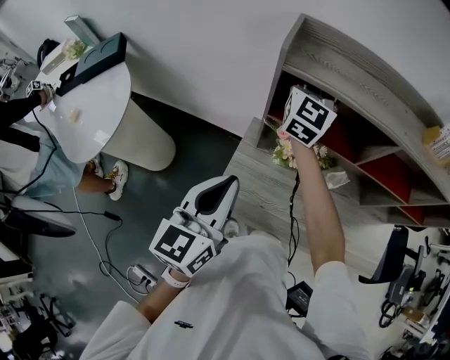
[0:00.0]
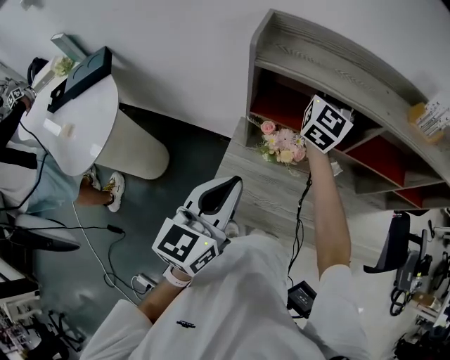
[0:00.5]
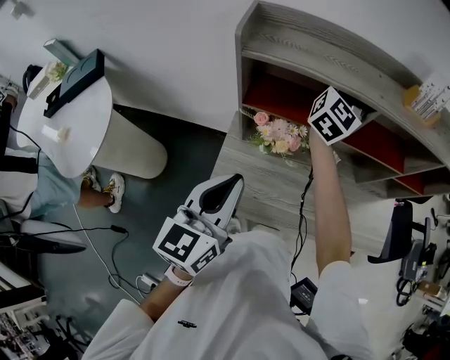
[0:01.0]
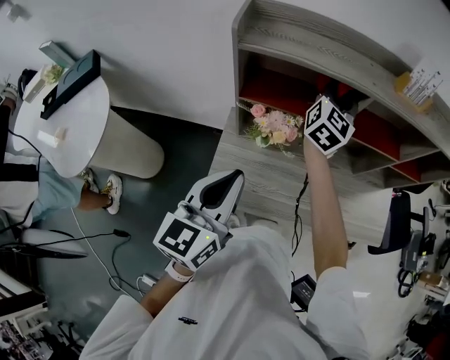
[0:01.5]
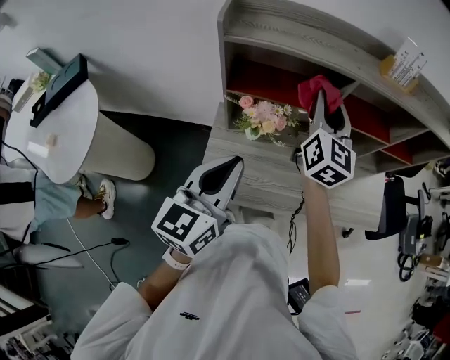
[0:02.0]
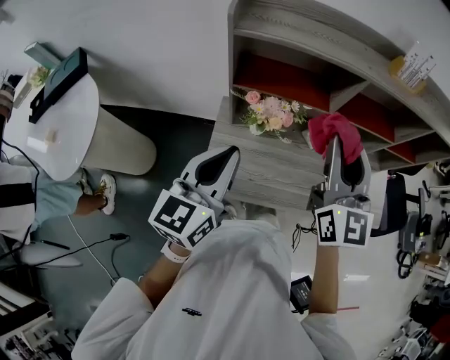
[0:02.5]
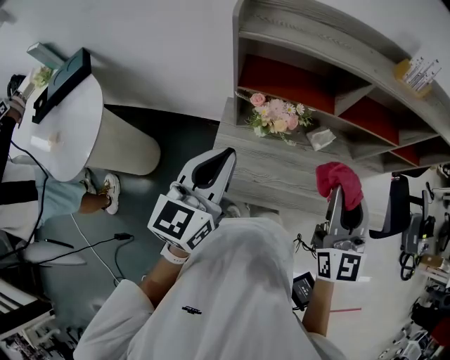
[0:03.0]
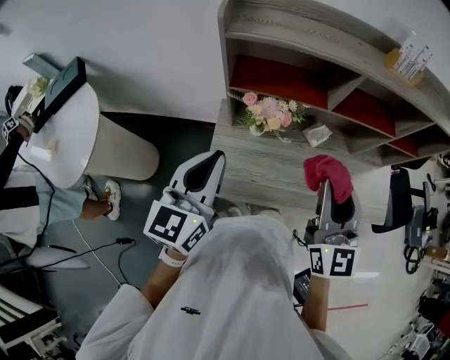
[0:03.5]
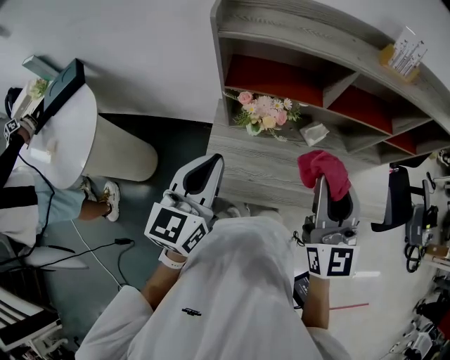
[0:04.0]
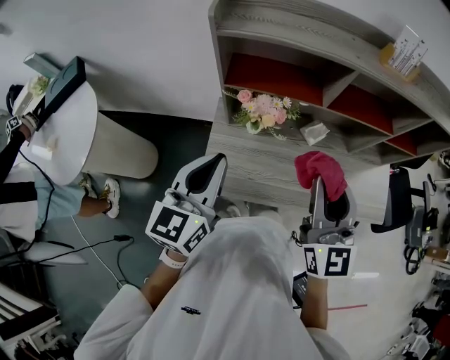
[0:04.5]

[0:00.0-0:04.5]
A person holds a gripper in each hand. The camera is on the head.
0:00.0 to 0:02.0: The right gripper is displaced to the right and backward by about 25 cm; the left gripper moves to the right, about 10 cm.
0:02.0 to 0:04.5: The right gripper travels backward by some 20 cm.

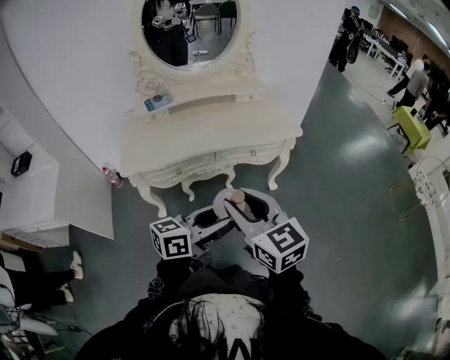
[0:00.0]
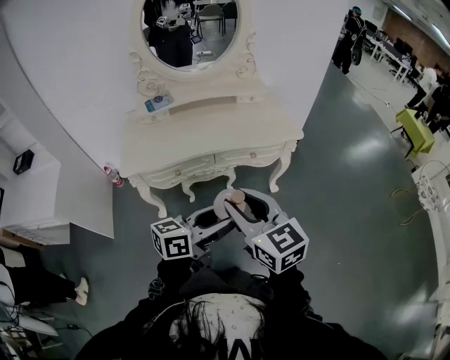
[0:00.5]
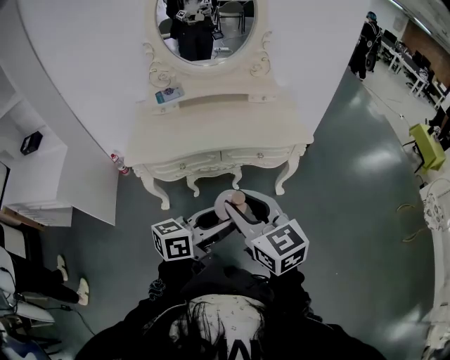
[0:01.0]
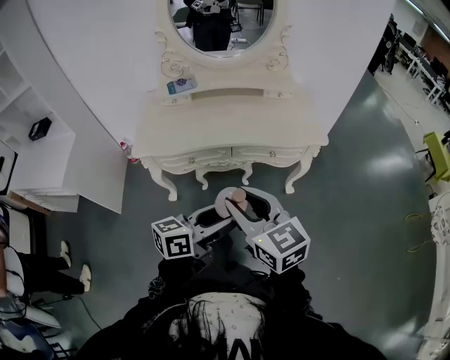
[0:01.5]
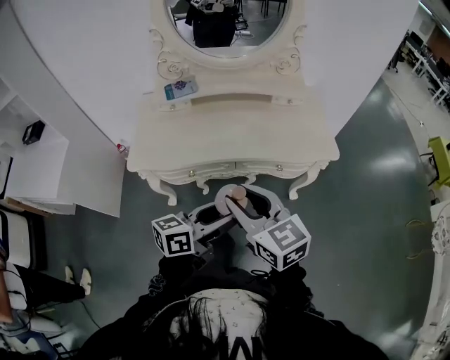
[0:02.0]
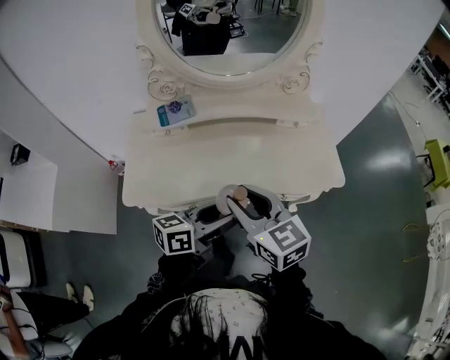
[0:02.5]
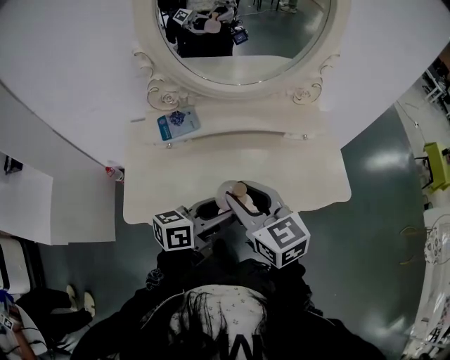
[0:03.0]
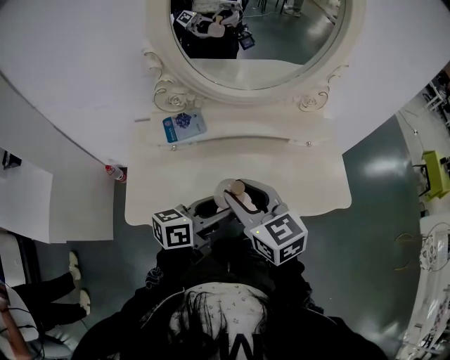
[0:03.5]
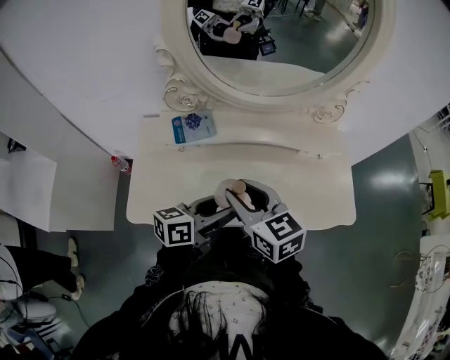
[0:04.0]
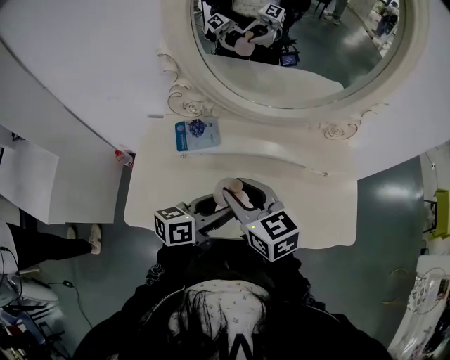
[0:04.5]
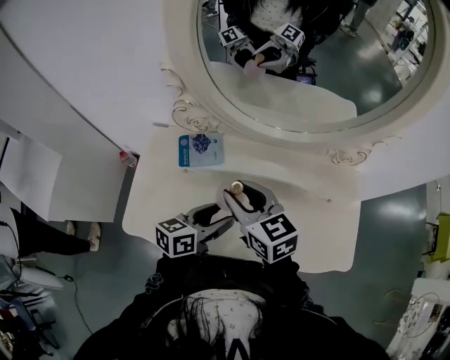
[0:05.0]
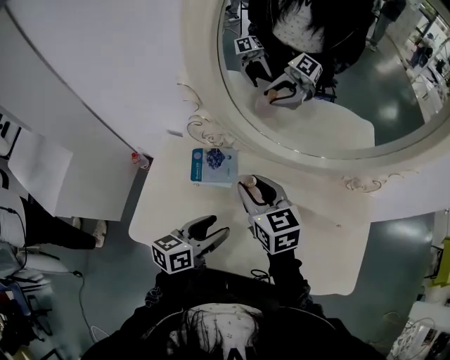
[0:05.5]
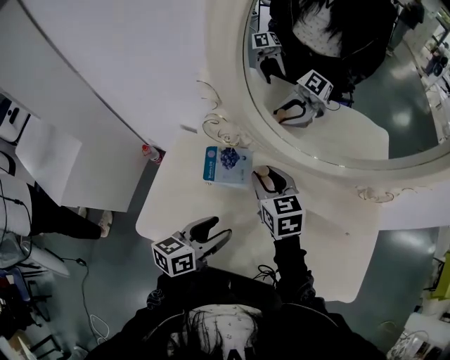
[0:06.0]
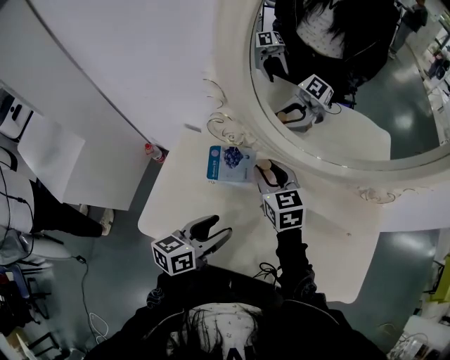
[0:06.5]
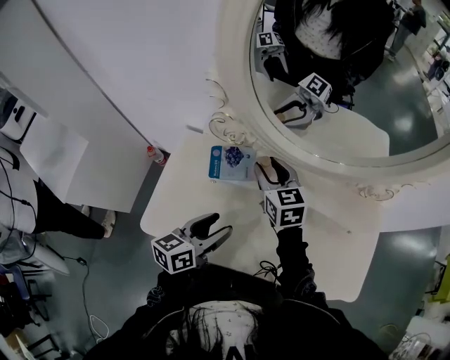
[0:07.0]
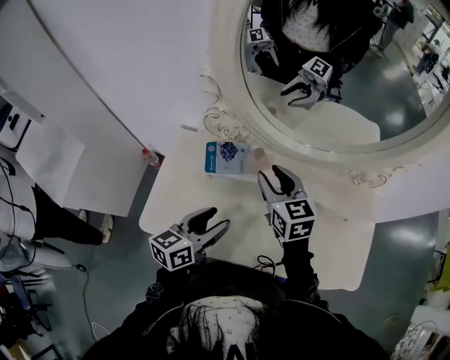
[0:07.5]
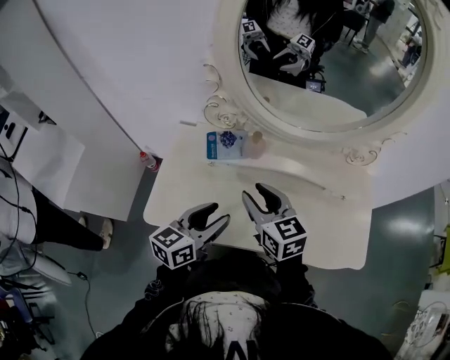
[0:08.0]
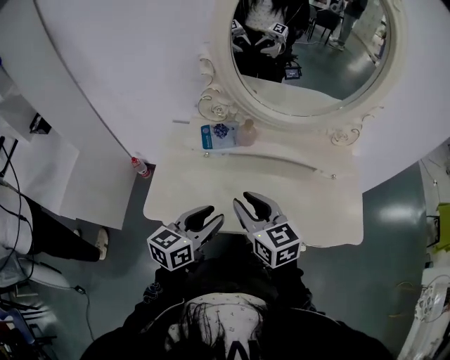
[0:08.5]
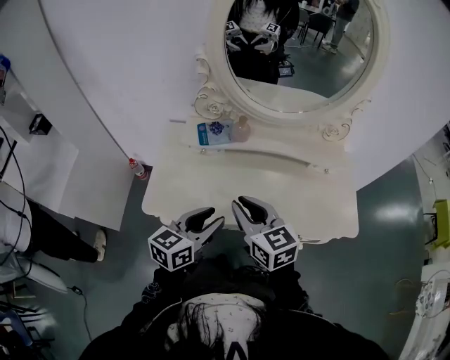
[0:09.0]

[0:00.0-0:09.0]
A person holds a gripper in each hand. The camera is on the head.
0:00.0 to 0:02.0: Both grippers travel together forward, roughly 15 cm.
0:02.0 to 0:04.5: The right gripper heads forward and to the left, covering roughly 35 cm, while the left gripper travels forward by approximately 35 cm.
0:04.5 to 0:07.0: The right gripper shifts roughly 20 cm forward. Meanwhile the left gripper is displaced to the left by about 10 cm, and rotates approximately 20 degrees.
0:07.0 to 0:09.0: The left gripper moves backward, roughly 15 cm, and closes, while the right gripper goes approximately 30 cm backward, and closes its fingers.

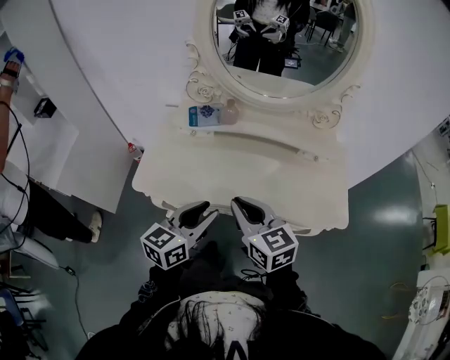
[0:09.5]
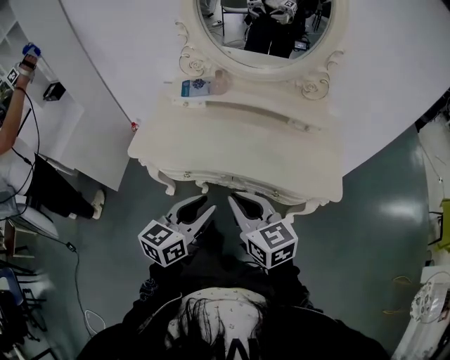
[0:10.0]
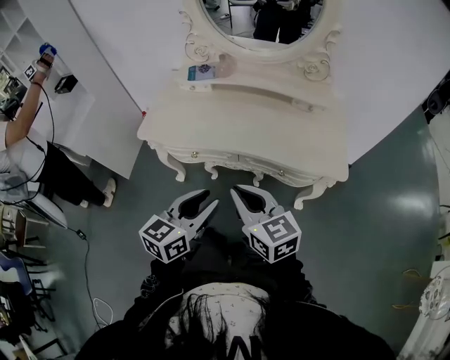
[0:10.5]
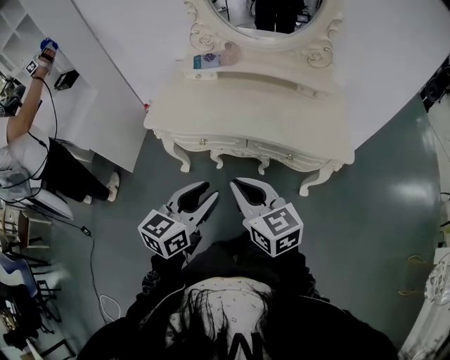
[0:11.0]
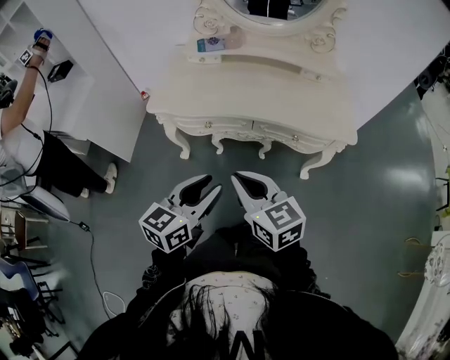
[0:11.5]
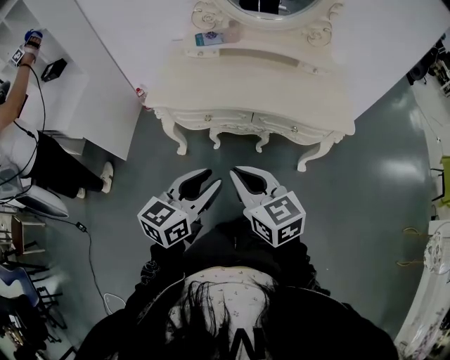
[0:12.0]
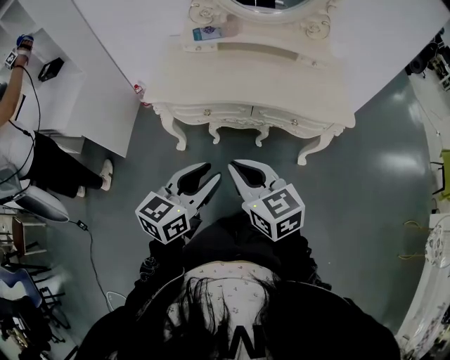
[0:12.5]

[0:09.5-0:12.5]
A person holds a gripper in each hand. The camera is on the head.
0:09.5 to 0:11.0: Both grippers move backward, about 20 cm.
0:11.0 to 0:12.5: The left gripper heads to the left, covering approximately 5 cm. The right gripper travels to the left and backward by about 10 cm.

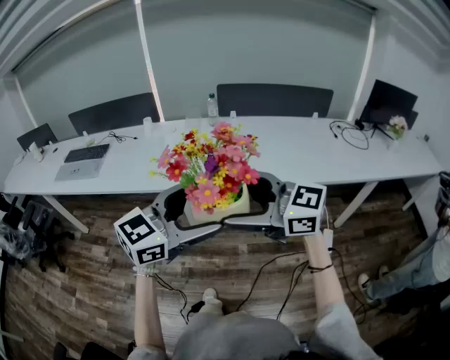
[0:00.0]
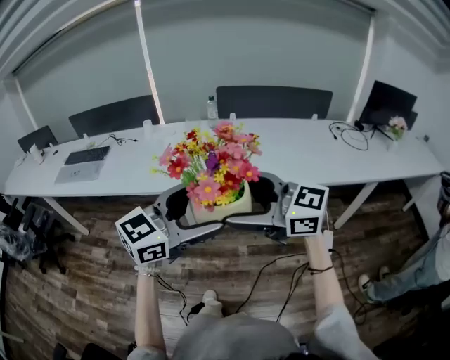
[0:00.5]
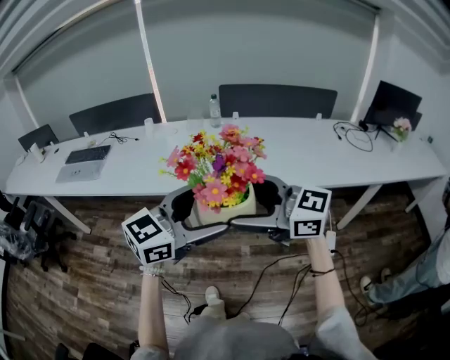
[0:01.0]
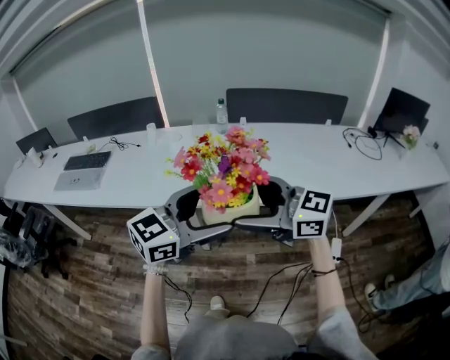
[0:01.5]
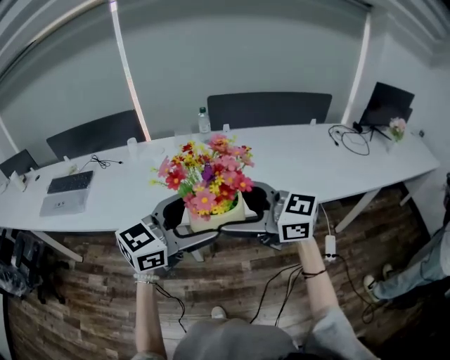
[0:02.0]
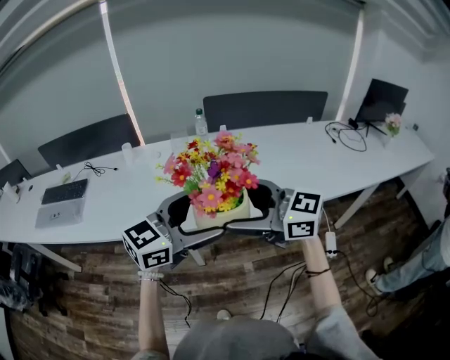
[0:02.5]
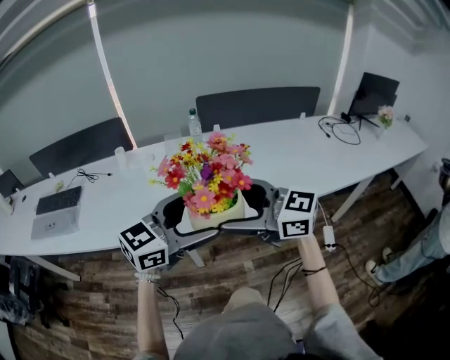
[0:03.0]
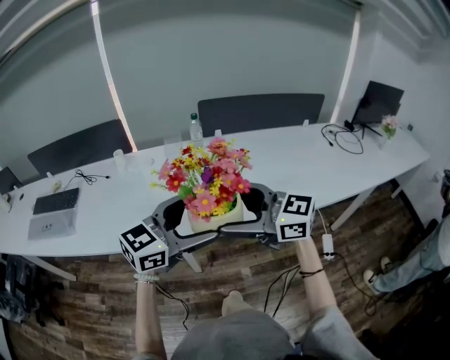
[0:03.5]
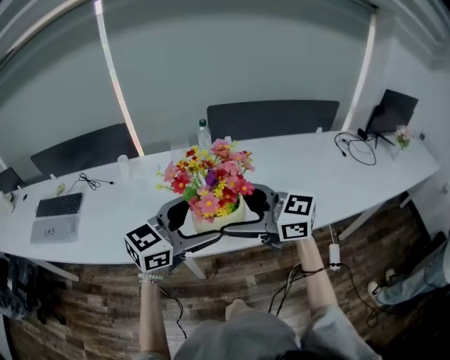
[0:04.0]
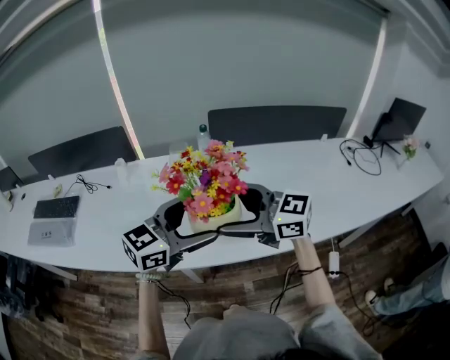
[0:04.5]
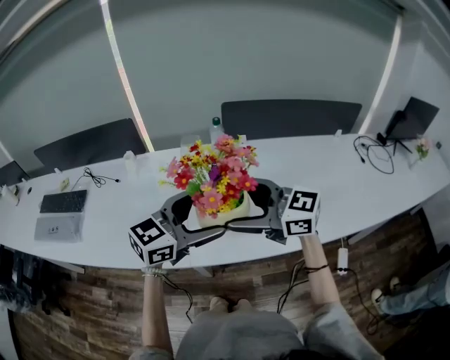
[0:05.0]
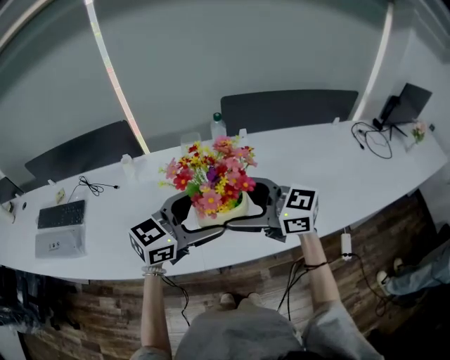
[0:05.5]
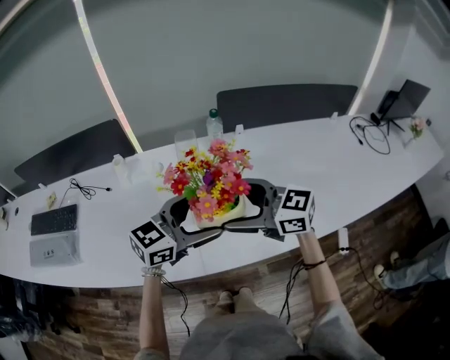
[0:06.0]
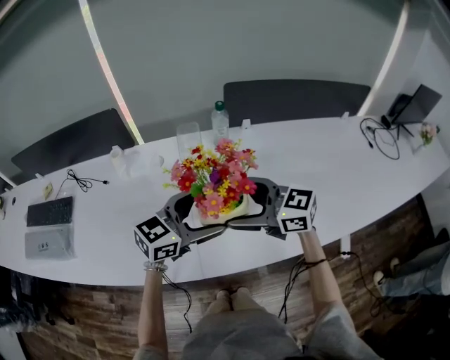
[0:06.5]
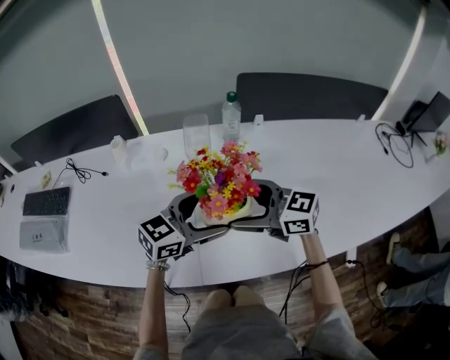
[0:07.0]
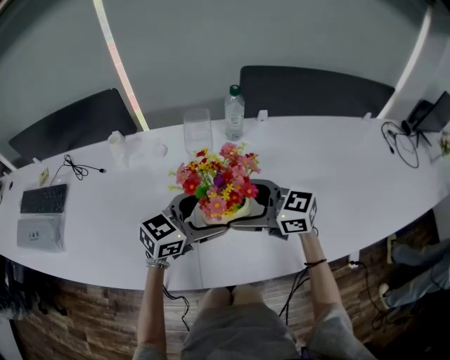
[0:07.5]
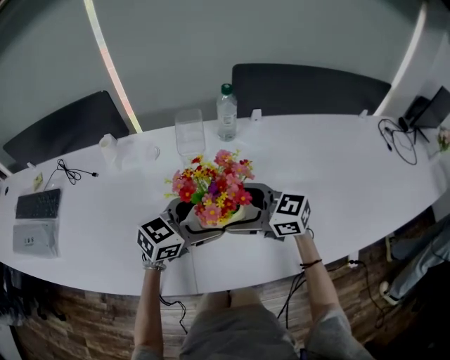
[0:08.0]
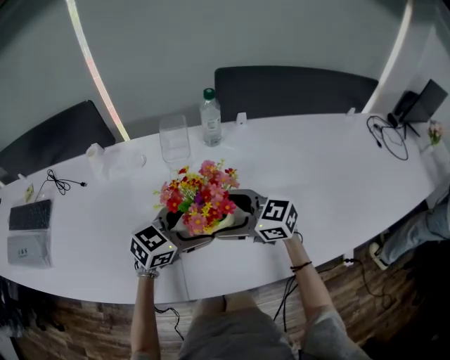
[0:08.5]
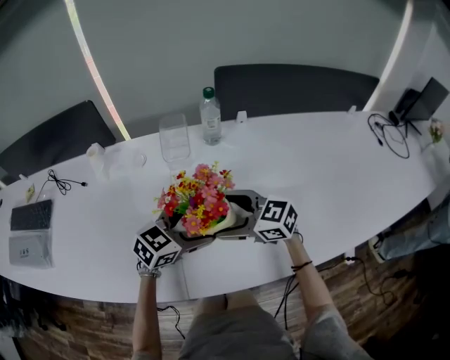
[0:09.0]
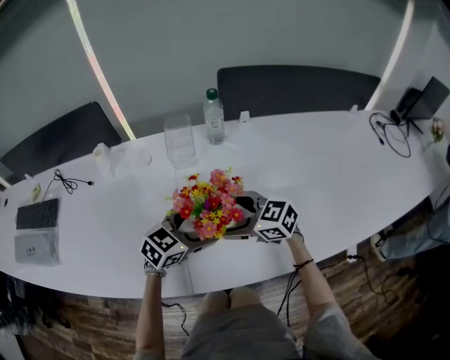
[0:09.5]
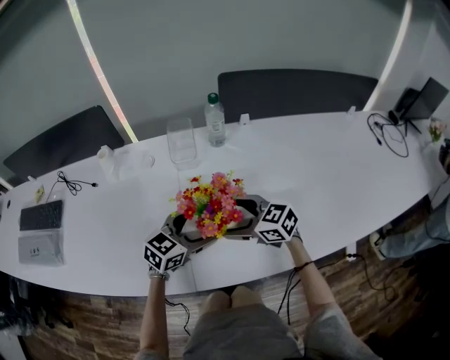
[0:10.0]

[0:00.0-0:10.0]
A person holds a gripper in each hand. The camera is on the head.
0:00.0 to 0:02.0: The right gripper changes place by some 15 cm. Meanwhile the left gripper shifts by some 15 cm.
0:02.0 to 0:04.0: The left gripper moves roughly 15 cm. The right gripper shifts by approximately 15 cm.
0:04.0 to 0:06.0: The right gripper moves about 15 cm; the left gripper ends up roughly 15 cm from where it was.
0:06.0 to 0:08.0: The two grippers go about 15 cm downward.
0:08.0 to 0:10.0: The grippers move only a little.
